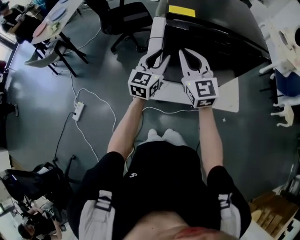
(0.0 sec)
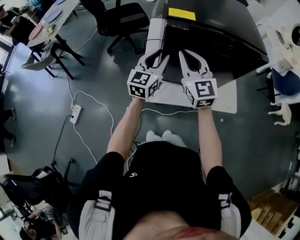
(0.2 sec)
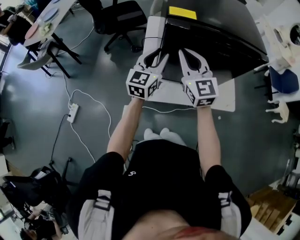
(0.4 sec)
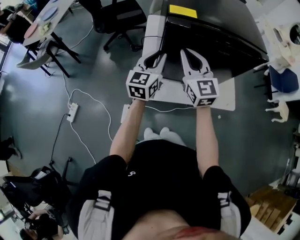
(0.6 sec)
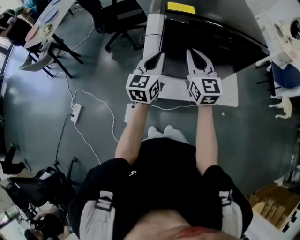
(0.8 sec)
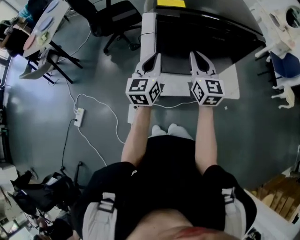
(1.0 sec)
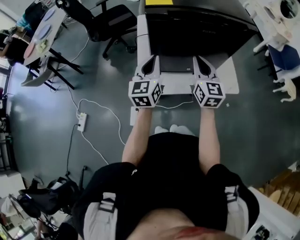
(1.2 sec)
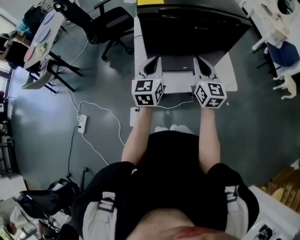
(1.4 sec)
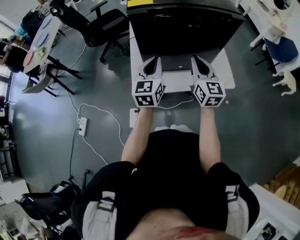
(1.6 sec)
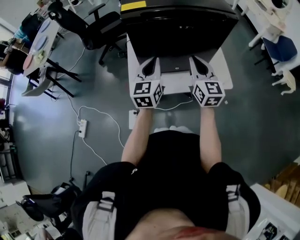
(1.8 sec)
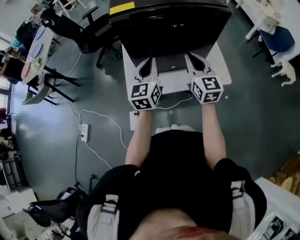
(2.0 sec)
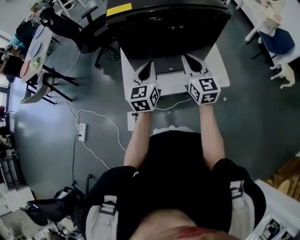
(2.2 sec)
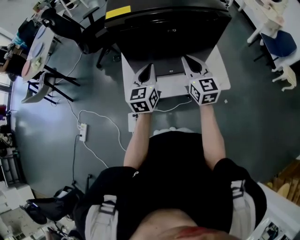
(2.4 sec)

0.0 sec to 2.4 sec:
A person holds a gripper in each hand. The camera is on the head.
0.0 sec to 1.2 sec: The right gripper is displaced to the right and downward by roughly 15 cm, and turns by roughly 20 degrees; the left gripper closes.
1.2 sec to 2.4 sec: The two grippers go roughly 10 cm to the right.

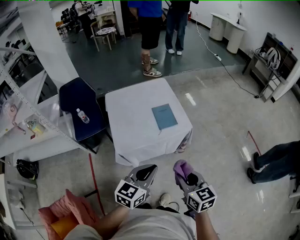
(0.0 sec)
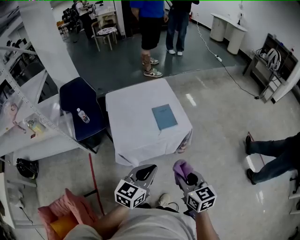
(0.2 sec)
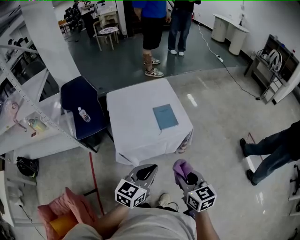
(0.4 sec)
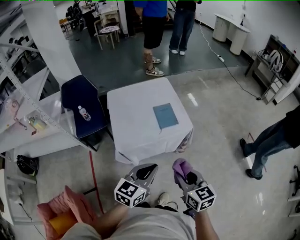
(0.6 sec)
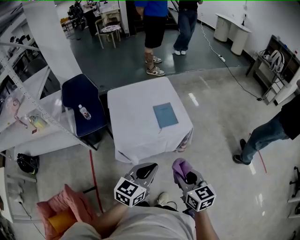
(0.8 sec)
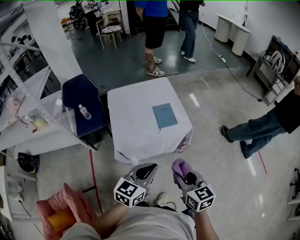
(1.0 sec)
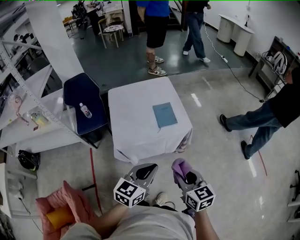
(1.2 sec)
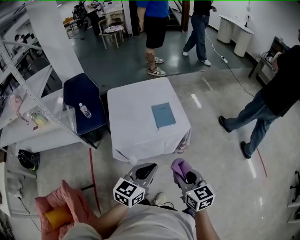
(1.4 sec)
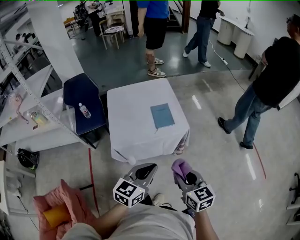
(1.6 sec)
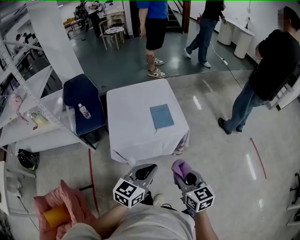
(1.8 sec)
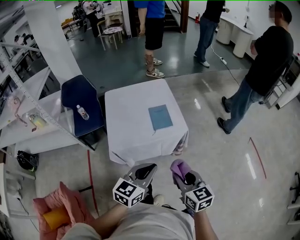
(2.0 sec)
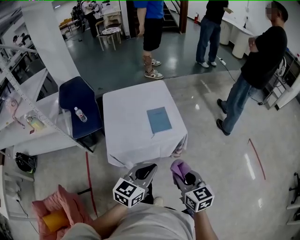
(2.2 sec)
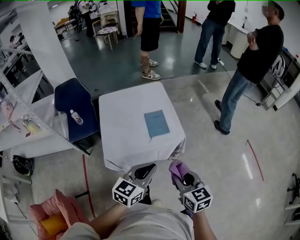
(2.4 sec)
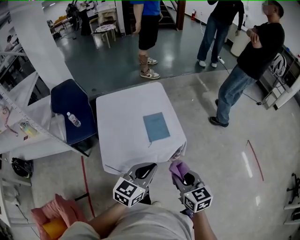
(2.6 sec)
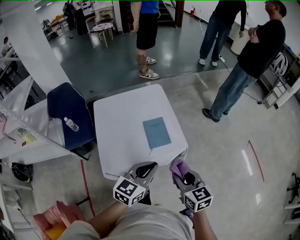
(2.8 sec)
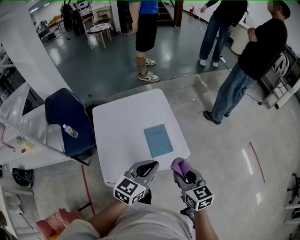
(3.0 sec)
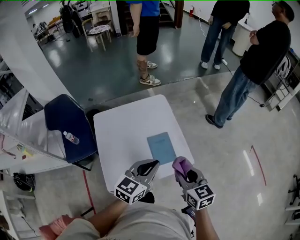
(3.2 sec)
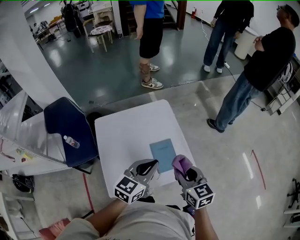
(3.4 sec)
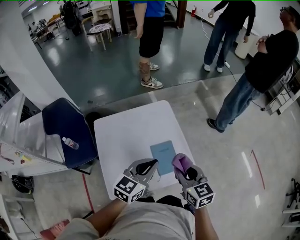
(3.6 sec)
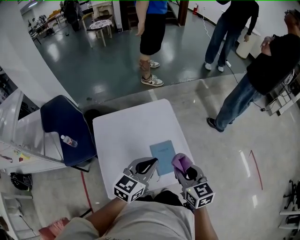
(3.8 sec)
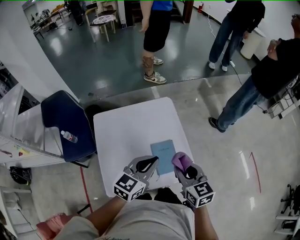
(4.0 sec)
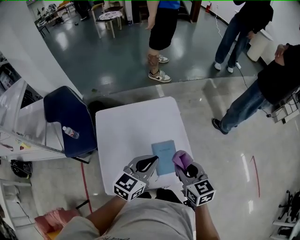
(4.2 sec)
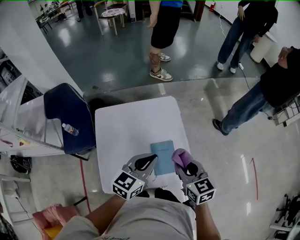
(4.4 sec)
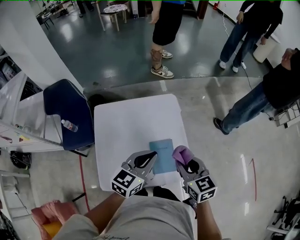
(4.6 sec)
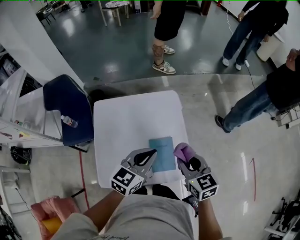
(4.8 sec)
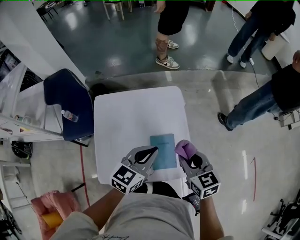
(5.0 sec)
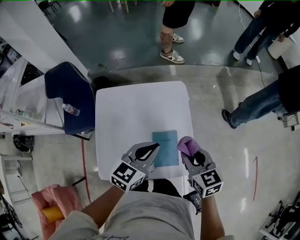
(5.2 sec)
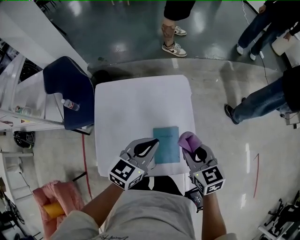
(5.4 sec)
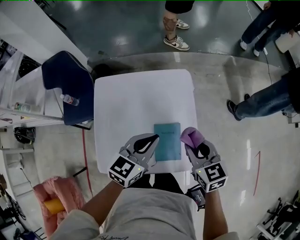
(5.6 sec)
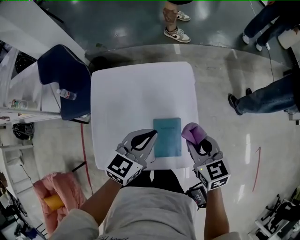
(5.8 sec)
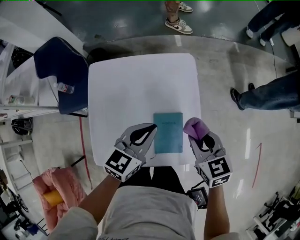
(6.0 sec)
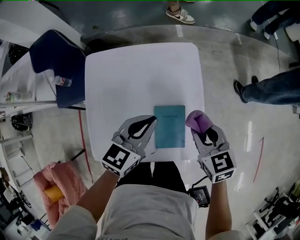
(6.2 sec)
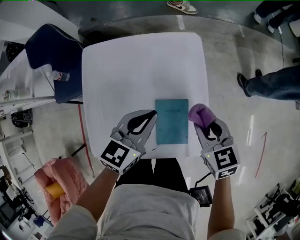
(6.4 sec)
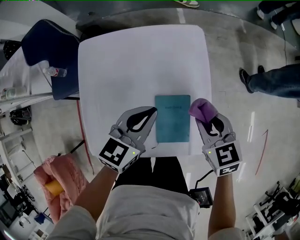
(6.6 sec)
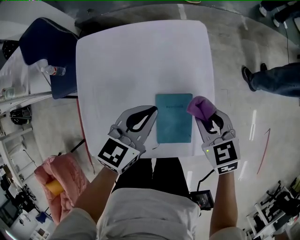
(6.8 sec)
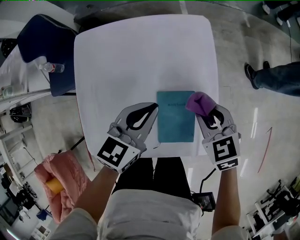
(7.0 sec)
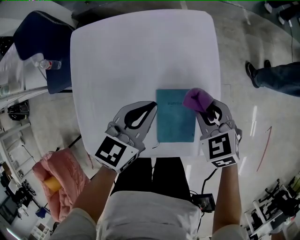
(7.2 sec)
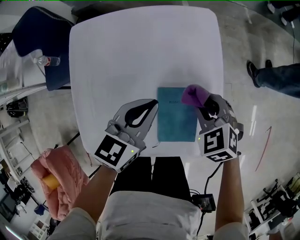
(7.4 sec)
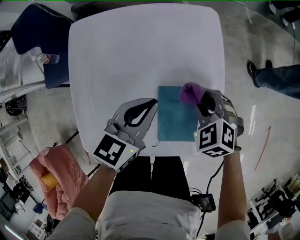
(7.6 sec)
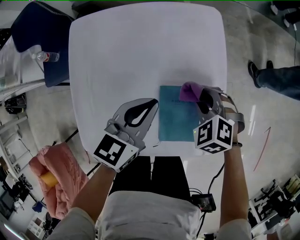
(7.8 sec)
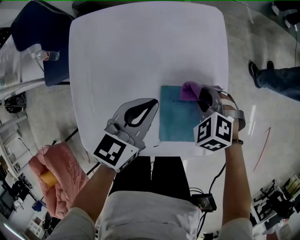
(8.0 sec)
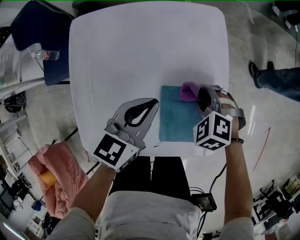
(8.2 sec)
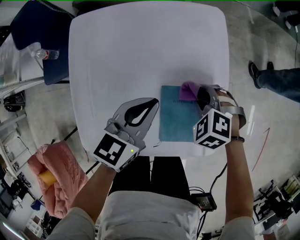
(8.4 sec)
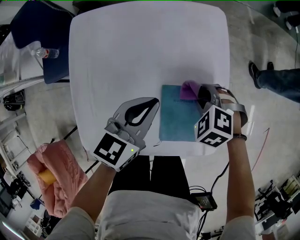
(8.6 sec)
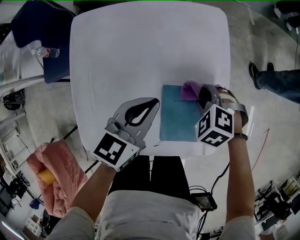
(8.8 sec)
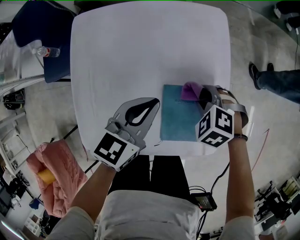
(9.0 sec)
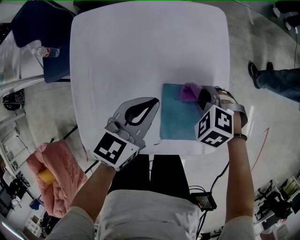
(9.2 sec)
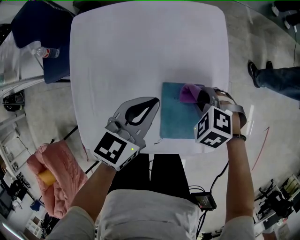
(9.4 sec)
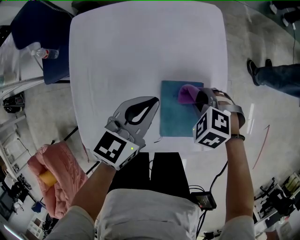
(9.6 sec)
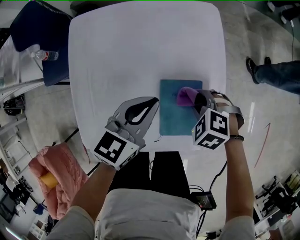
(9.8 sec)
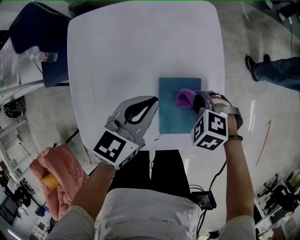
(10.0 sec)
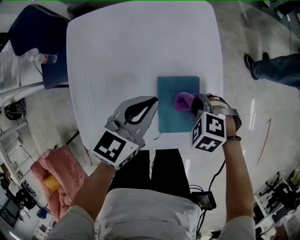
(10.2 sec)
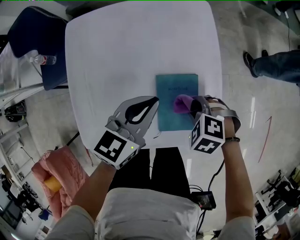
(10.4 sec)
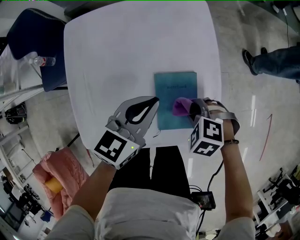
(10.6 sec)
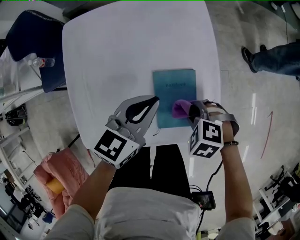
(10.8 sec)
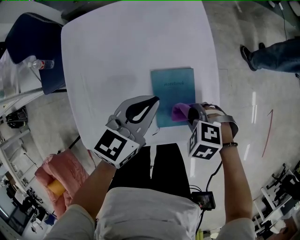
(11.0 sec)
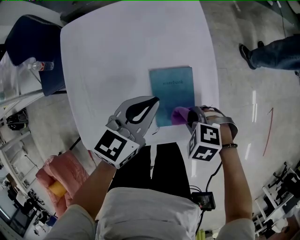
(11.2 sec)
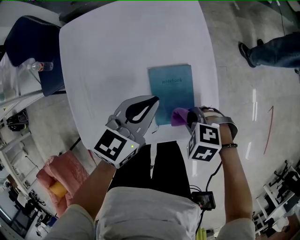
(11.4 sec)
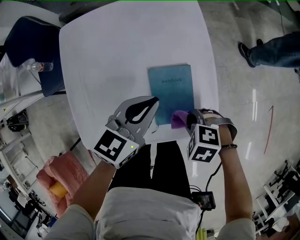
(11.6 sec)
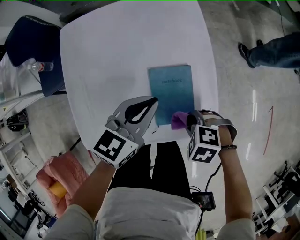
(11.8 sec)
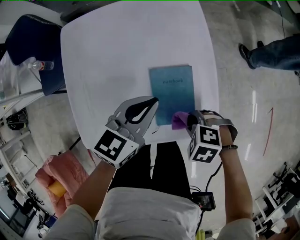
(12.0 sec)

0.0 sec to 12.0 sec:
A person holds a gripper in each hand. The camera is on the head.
0.0 sec to 1.6 sec: The two grippers go some 5 cm to the right.
1.6 sec to 3.0 sec: Both grippers travel together forward, about 25 cm.
3.0 sec to 4.4 sec: The two grippers go approximately 15 cm forward.
4.4 sec to 6.0 sec: The left gripper heads downward and forward, covering approximately 10 cm; the right gripper shifts roughly 10 cm forward and downward.
6.0 sec to 7.6 sec: The left gripper is displaced downward by approximately 10 cm, while the right gripper travels downward by approximately 15 cm, and changes its angle by about 50 degrees.
7.6 sec to 9.0 sec: The grippers stay close to where they were, moving slightly.
9.0 sec to 10.4 sec: The right gripper moves some 10 cm.
10.4 sec to 12.0 sec: The right gripper ends up approximately 10 cm from where it was.

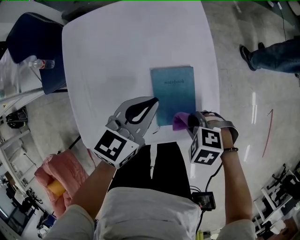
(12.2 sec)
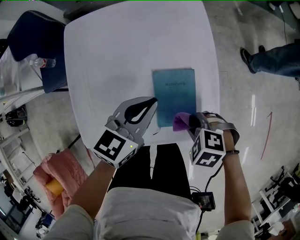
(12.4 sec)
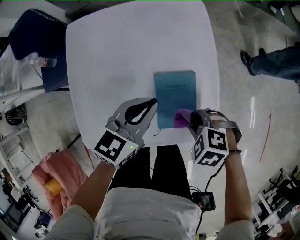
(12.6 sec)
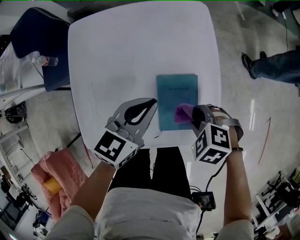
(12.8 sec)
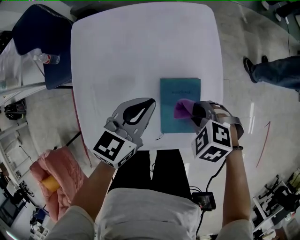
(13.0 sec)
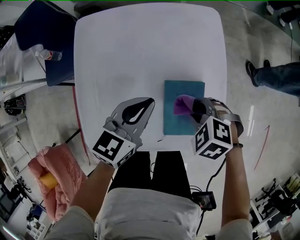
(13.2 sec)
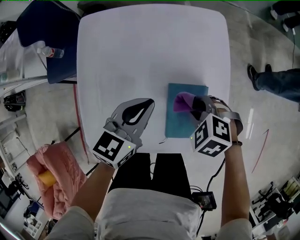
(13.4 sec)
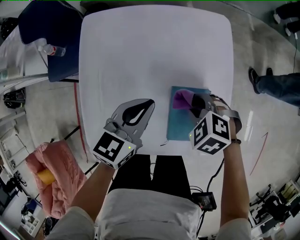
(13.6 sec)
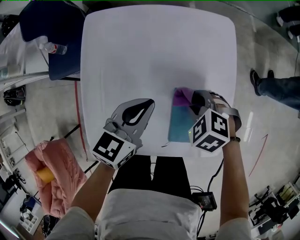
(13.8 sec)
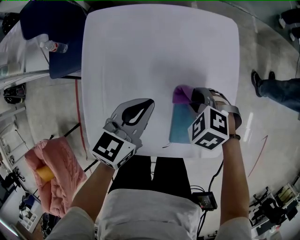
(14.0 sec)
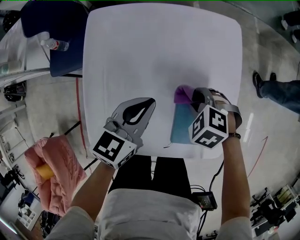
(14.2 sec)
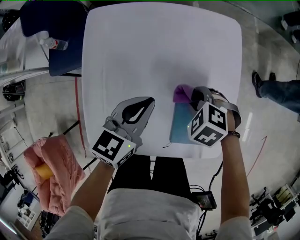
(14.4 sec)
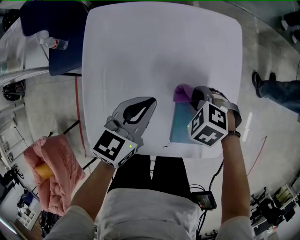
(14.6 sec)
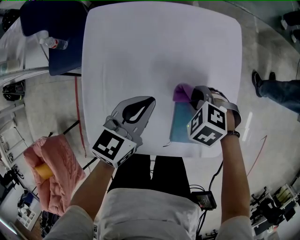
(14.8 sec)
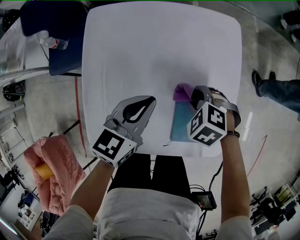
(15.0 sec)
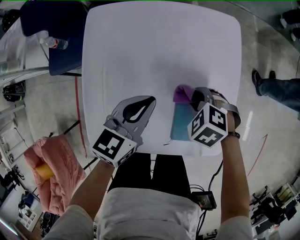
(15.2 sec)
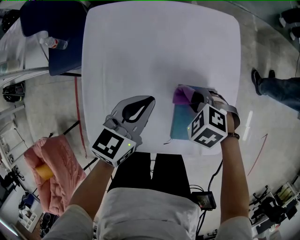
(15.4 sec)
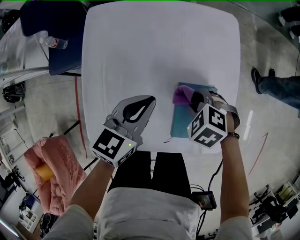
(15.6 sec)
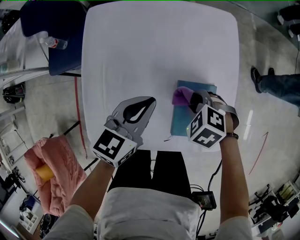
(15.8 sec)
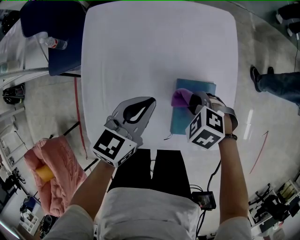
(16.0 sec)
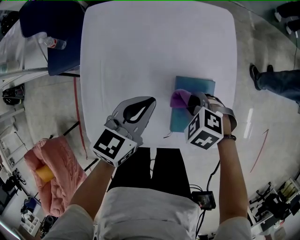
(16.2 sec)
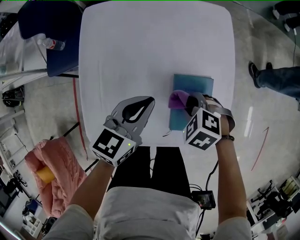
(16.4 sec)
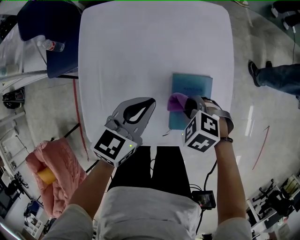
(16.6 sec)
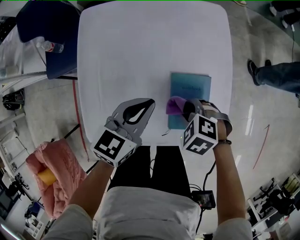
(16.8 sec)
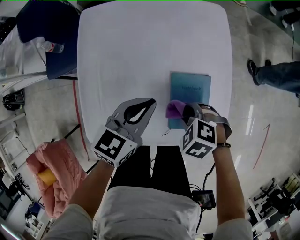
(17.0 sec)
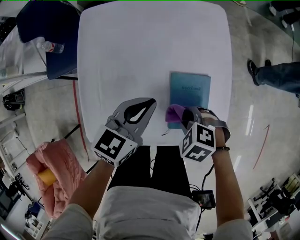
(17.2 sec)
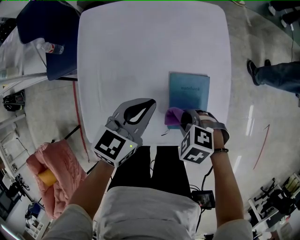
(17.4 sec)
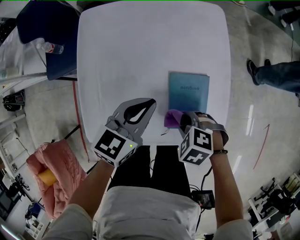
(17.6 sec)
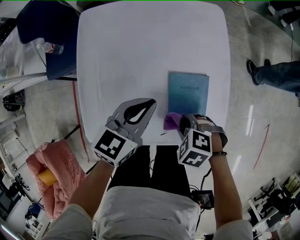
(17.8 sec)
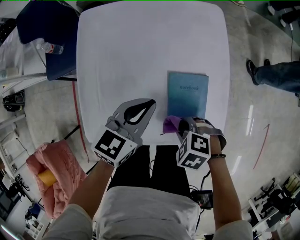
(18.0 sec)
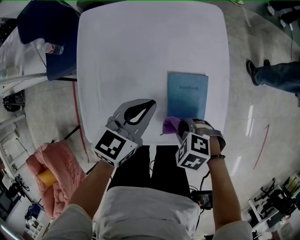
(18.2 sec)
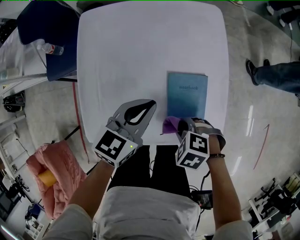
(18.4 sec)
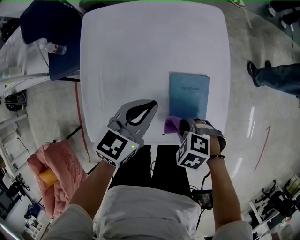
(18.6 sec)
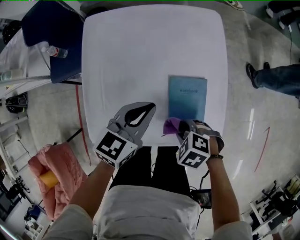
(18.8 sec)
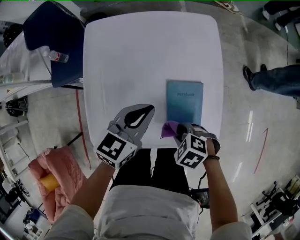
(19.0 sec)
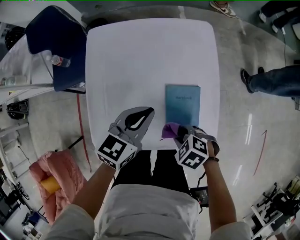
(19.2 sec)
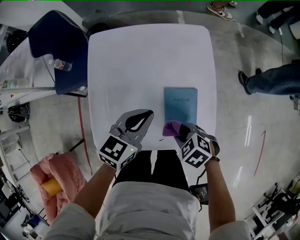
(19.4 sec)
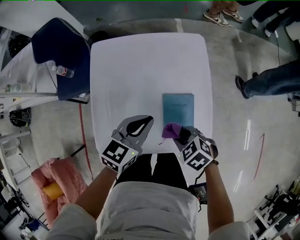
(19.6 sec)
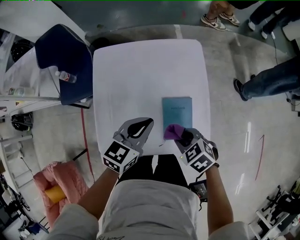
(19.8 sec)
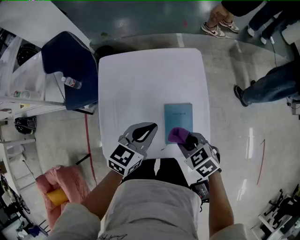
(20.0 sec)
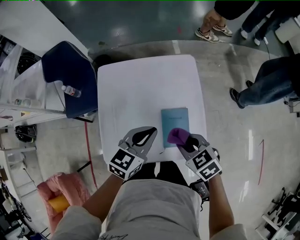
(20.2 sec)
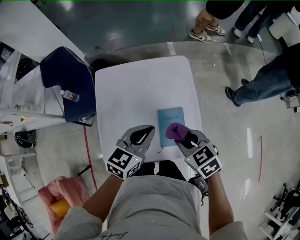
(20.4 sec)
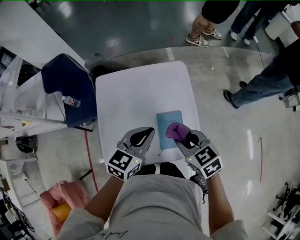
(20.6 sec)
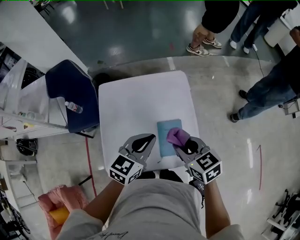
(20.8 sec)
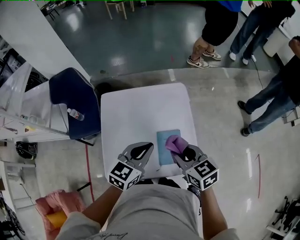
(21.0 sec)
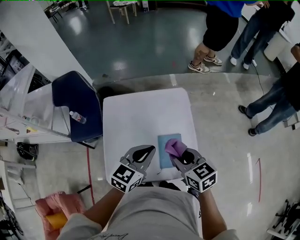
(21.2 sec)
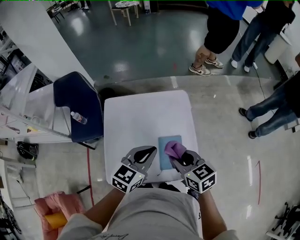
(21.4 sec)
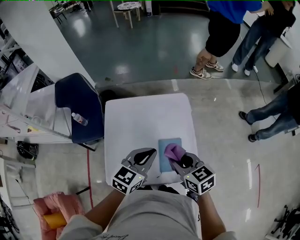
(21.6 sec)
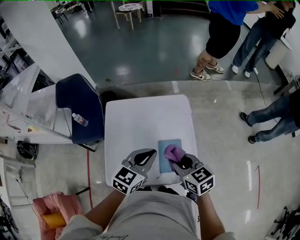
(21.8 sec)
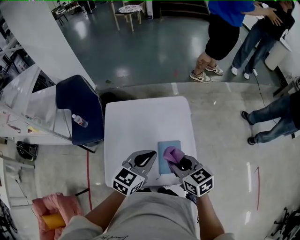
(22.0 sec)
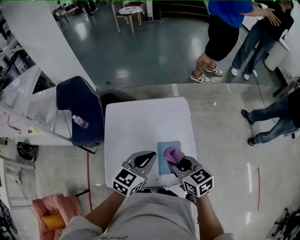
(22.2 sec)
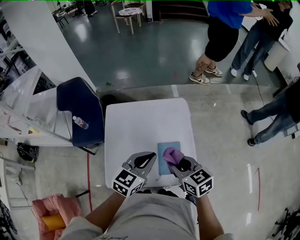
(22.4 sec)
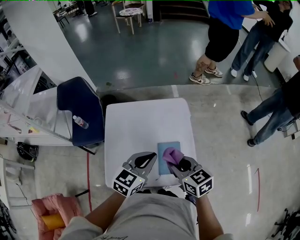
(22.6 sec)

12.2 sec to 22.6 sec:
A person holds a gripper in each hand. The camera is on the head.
12.2 sec to 13.6 sec: The left gripper moves approximately 10 cm; the right gripper changes place by about 15 cm.
13.6 sec to 15.2 sec: The grippers stay close to where they were, moving slightly.
15.2 sec to 16.6 sec: The right gripper shifts by approximately 10 cm. Meanwhile the left gripper shifts by some 5 cm.
16.6 sec to 18.2 sec: The right gripper shifts by about 10 cm.
18.2 sec to 19.6 sec: Both grippers travel together upward, some 5 cm. The right gripper changes its angle by approximately 20 degrees.
19.6 sec to 21.2 sec: The left gripper goes some 10 cm upward, while the right gripper moves upward, some 20 cm, and points its fingers approximately 30 degrees further upward.
21.2 sec to 22.6 sec: There are only small adjustments of the grippers.
